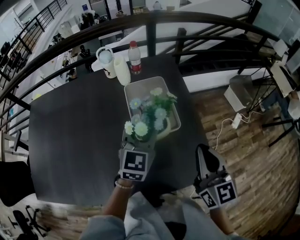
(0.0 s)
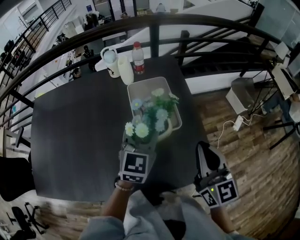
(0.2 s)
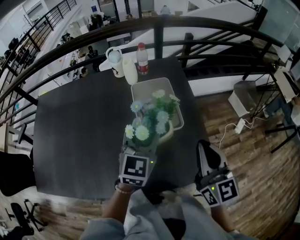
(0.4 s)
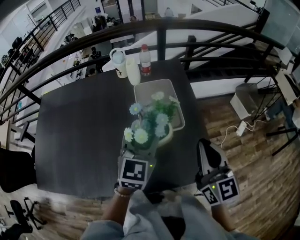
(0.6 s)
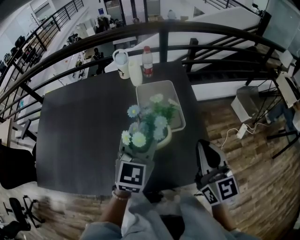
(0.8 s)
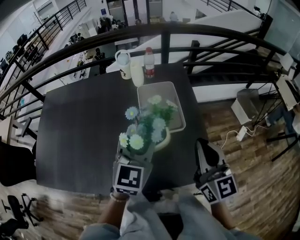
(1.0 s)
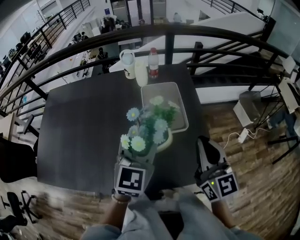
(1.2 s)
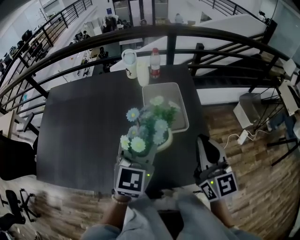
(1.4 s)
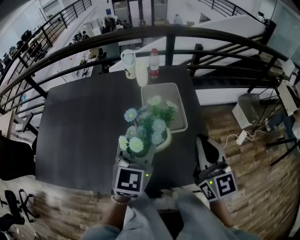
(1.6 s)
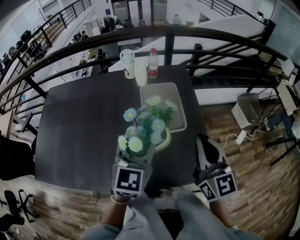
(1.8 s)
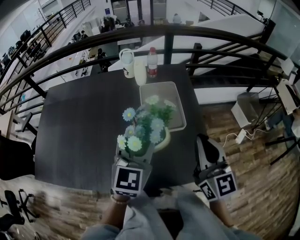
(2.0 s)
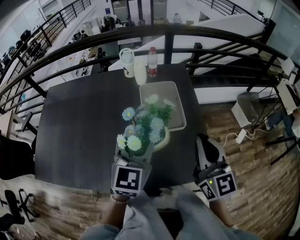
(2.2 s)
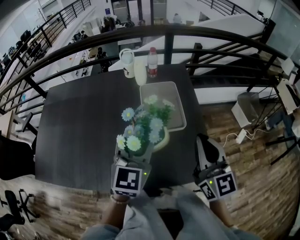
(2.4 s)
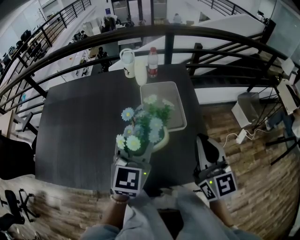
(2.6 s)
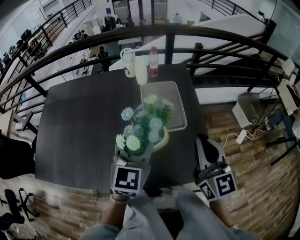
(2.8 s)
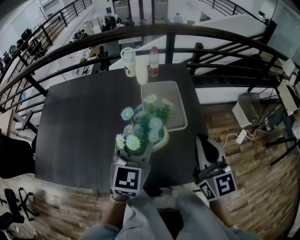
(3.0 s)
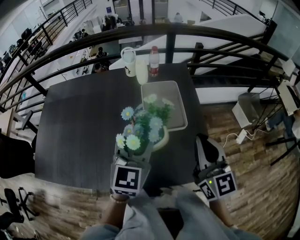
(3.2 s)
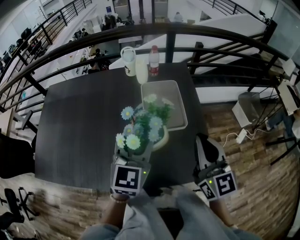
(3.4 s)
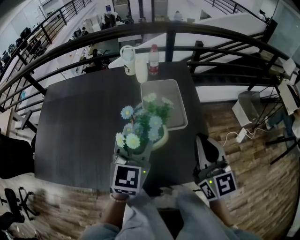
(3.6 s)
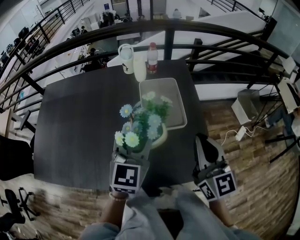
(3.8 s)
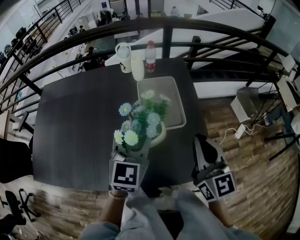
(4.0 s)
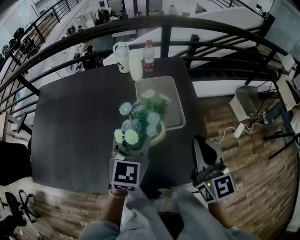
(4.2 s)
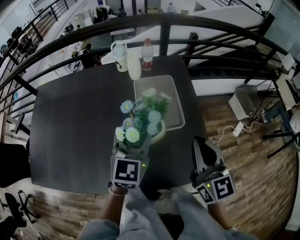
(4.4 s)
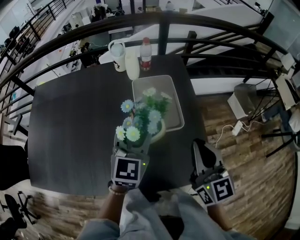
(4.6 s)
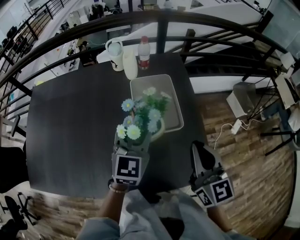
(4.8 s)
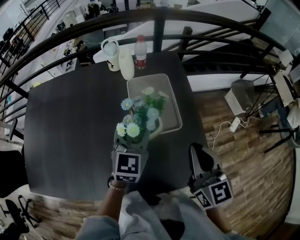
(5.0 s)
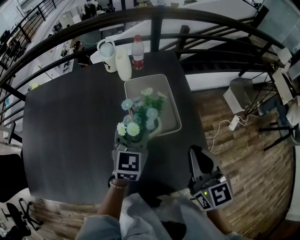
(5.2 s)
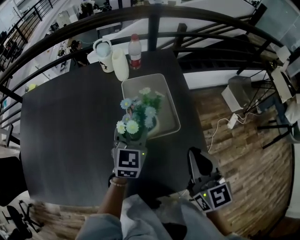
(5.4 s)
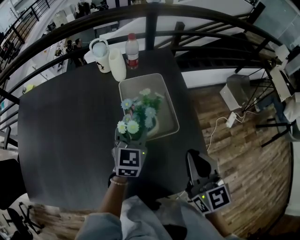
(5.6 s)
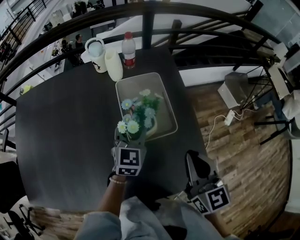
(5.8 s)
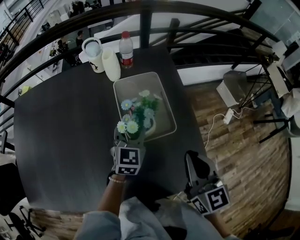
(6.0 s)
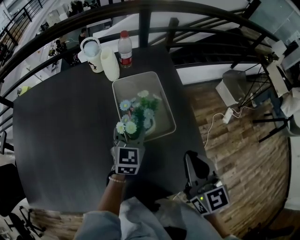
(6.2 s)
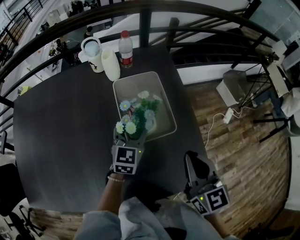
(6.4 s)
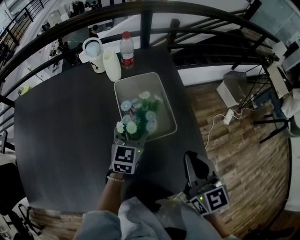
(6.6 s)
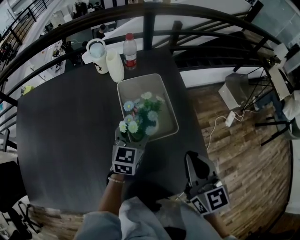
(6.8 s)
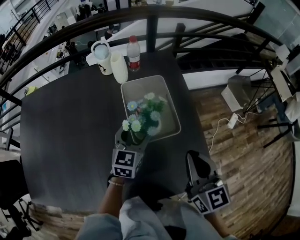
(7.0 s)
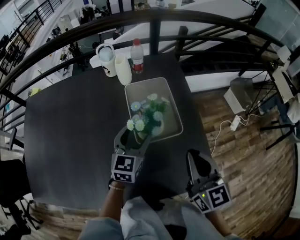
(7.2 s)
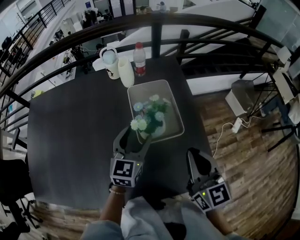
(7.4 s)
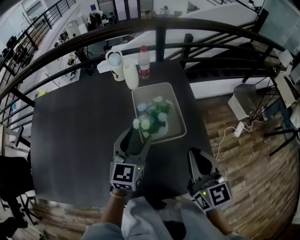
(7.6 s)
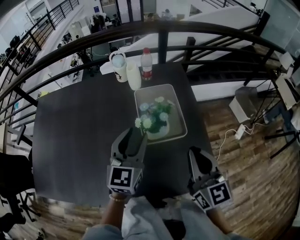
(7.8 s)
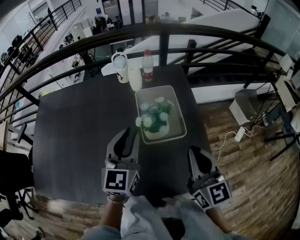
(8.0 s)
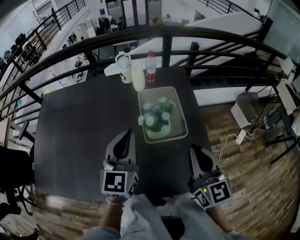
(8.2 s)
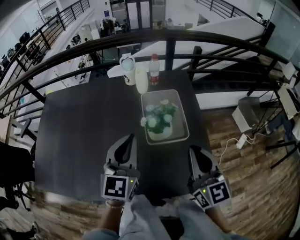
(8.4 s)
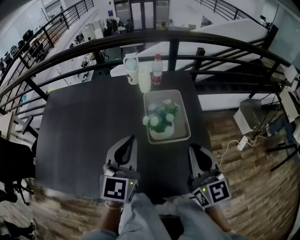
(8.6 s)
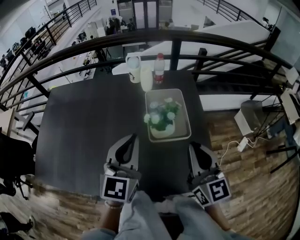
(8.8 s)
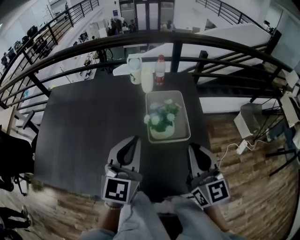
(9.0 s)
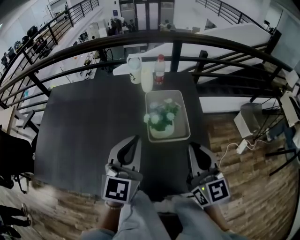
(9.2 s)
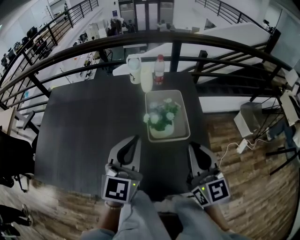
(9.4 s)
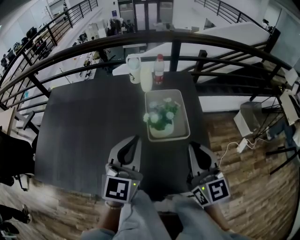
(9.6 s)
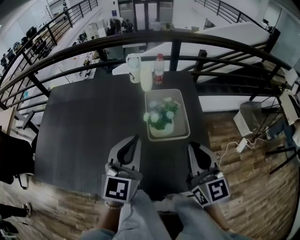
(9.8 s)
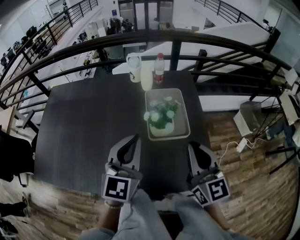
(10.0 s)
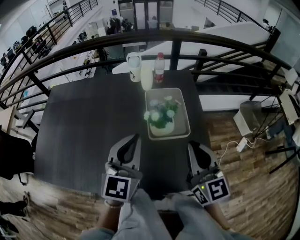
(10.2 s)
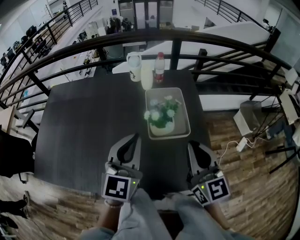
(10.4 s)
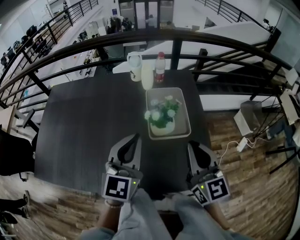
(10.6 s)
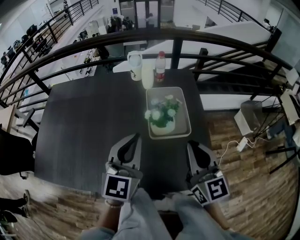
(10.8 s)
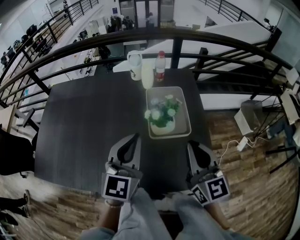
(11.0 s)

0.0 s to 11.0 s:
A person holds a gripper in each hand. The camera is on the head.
0.0 to 1.6 s: The right gripper heads upward, covering approximately 5 cm, while the left gripper travels backward and upward by some 15 cm.
1.6 to 3.2 s: Neither gripper changes place.
3.2 to 4.8 s: The right gripper shifts by approximately 5 cm; the left gripper heads forward and downward, covering roughly 10 cm.
4.8 to 6.2 s: The left gripper heads downward and forward, covering approximately 15 cm.
6.2 to 7.8 s: The left gripper shifts approximately 15 cm upward, backward and to the left.
7.8 to 9.4 s: The left gripper is displaced upward and backward by approximately 10 cm, and closes.
9.4 to 11.0 s: The two grippers keep their place.

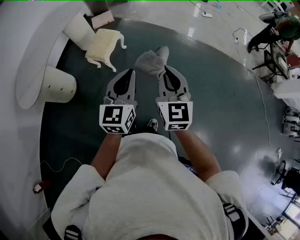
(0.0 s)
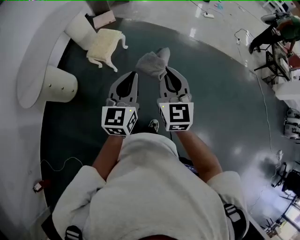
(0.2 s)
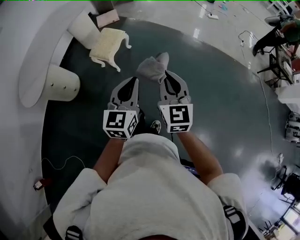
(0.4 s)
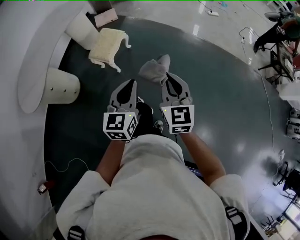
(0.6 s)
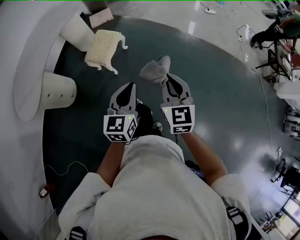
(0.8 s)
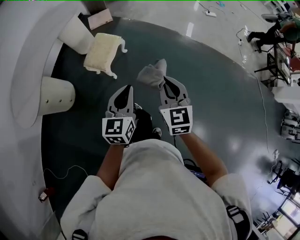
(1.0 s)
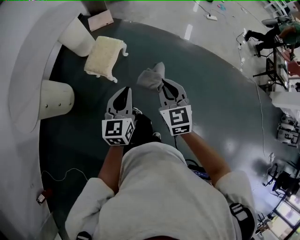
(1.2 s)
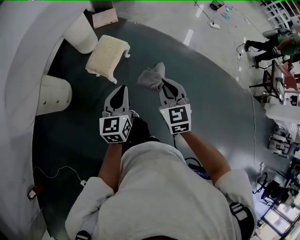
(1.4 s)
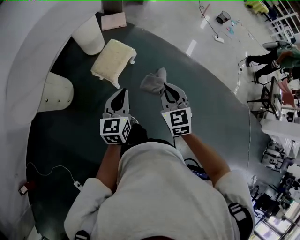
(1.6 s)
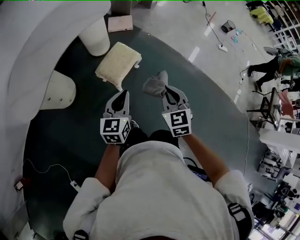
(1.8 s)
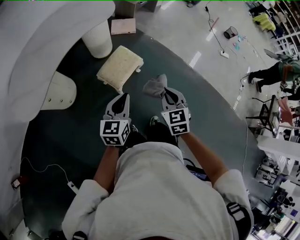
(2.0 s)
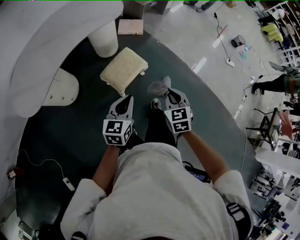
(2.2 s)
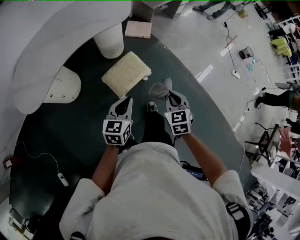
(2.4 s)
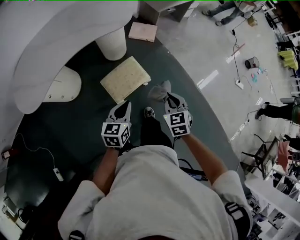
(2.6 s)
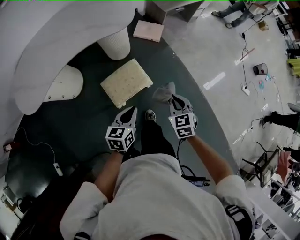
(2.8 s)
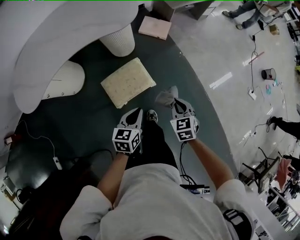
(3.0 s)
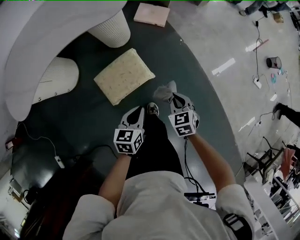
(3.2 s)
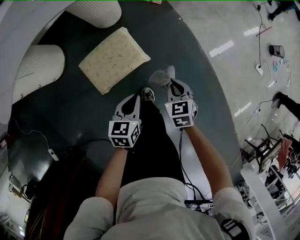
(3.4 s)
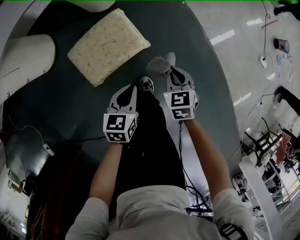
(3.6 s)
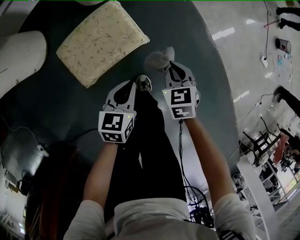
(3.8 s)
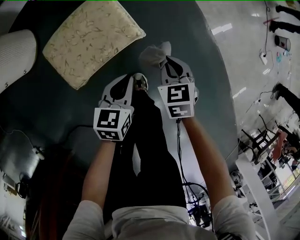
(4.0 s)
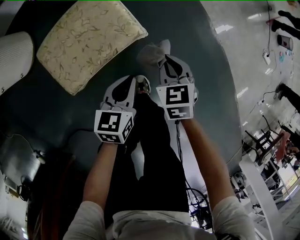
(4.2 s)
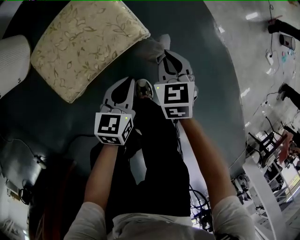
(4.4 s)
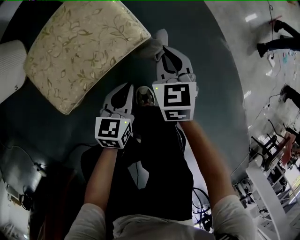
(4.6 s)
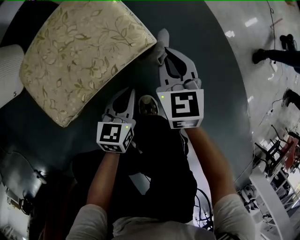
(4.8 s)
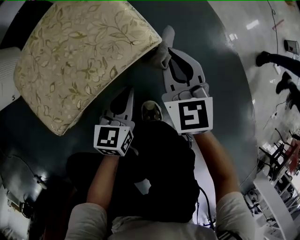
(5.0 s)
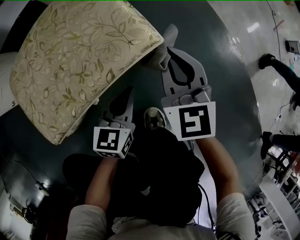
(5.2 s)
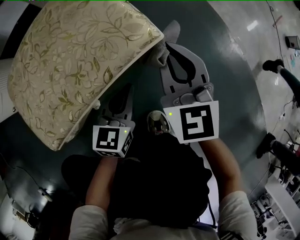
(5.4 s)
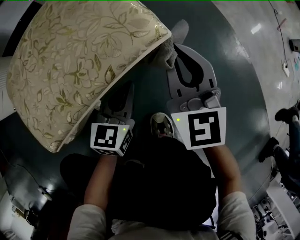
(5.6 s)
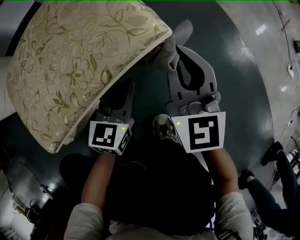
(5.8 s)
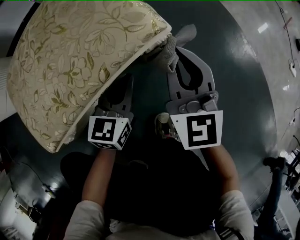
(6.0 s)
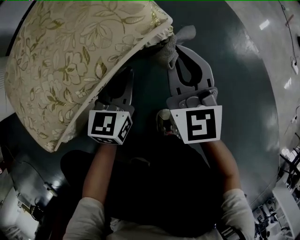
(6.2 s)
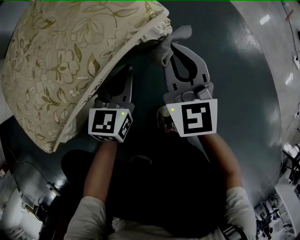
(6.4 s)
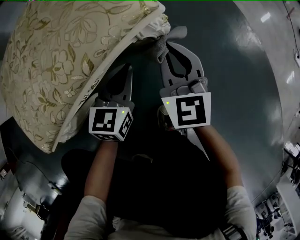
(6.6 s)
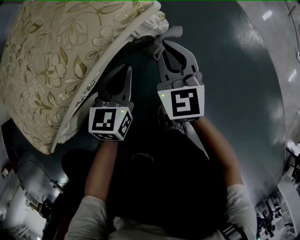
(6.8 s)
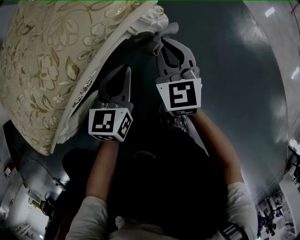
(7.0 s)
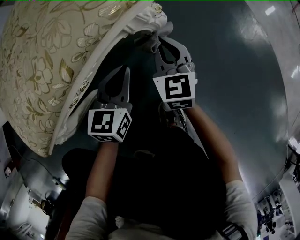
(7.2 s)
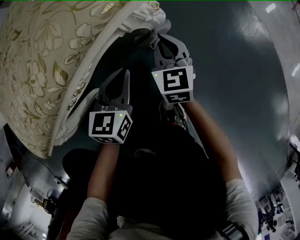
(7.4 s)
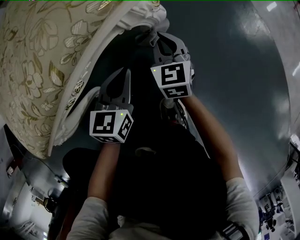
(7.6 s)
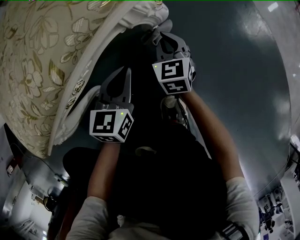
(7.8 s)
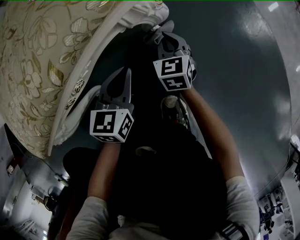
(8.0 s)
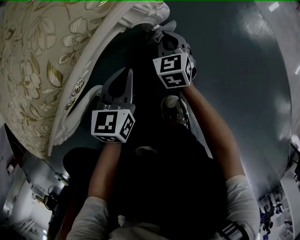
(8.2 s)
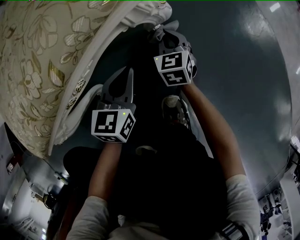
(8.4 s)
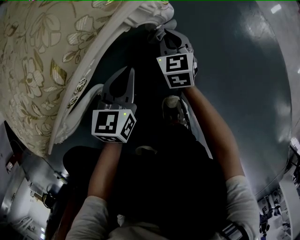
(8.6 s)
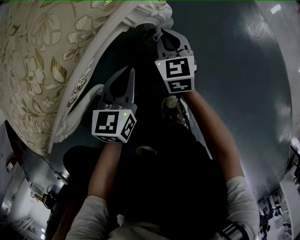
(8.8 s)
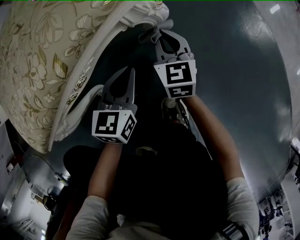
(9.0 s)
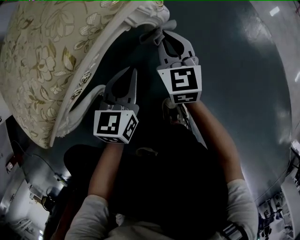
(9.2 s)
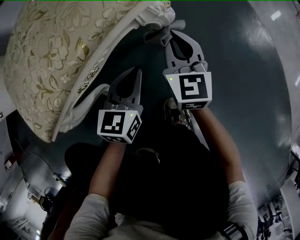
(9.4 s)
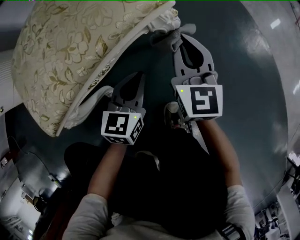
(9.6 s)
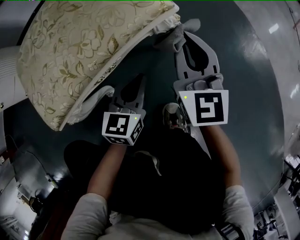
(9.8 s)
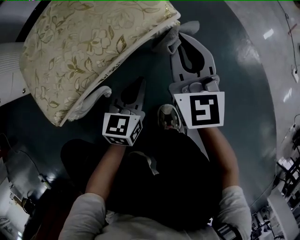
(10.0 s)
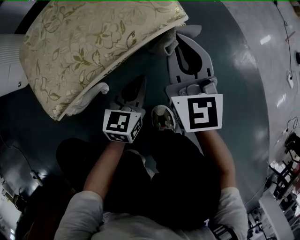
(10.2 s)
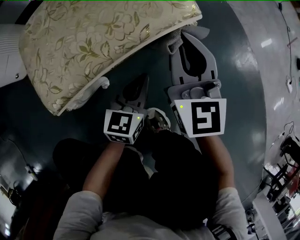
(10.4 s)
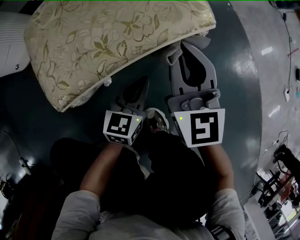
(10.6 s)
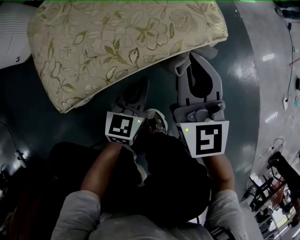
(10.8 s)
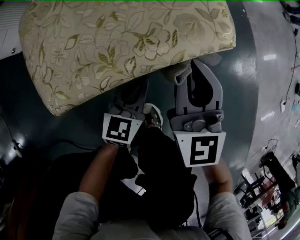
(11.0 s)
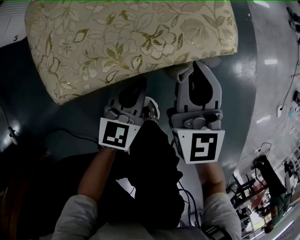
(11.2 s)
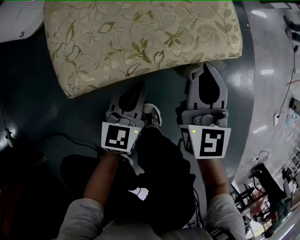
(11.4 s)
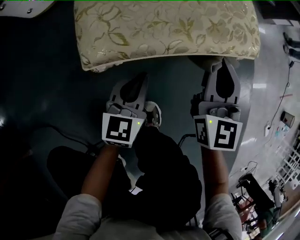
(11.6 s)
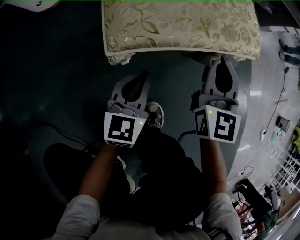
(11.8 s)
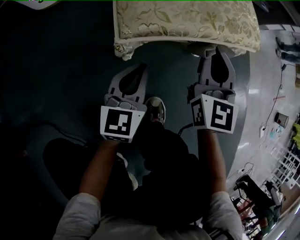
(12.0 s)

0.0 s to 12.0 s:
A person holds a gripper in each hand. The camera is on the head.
0.0 to 1.6 s: Both grippers move forward, to the left and downward, about 35 cm. The right gripper swivels about 30 degrees; the left gripper rotates some 20 degrees.
1.6 to 3.0 s: Both grippers travel together forward and downward, about 35 cm. The left gripper rotates roughly 30 degrees. Meanwhile the right gripper rotates about 30 degrees.
3.0 to 4.4 s: The two grippers go approximately 40 cm downward.
4.4 to 6.0 s: The left gripper is displaced downward by about 15 cm. Meanwhile the right gripper moves downward, approximately 5 cm, and points its fingers roughly 40 degrees further upward.
6.0 to 7.6 s: The right gripper moves downward, some 20 cm, and rotates about 20 degrees; the left gripper is displaced downward by about 5 cm.
7.6 to 9.0 s: The right gripper travels downward and back again, roughly 5 cm each way.
9.0 to 10.4 s: The left gripper travels upward by approximately 5 cm; the right gripper moves upward, some 25 cm, and rotates roughly 20 degrees.
10.4 to 12.0 s: The right gripper heads to the left, covering roughly 10 cm; the left gripper is displaced to the left and backward by about 15 cm, and turns by roughly 30 degrees.

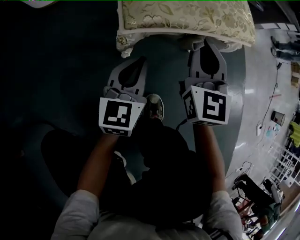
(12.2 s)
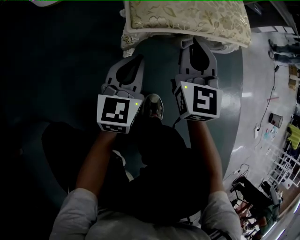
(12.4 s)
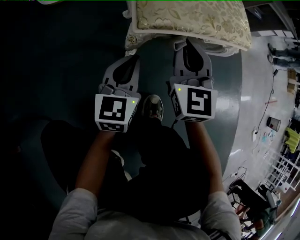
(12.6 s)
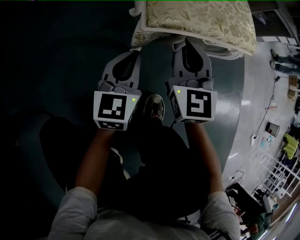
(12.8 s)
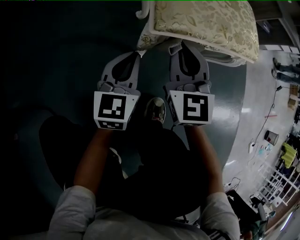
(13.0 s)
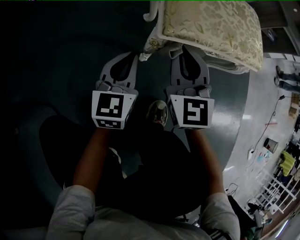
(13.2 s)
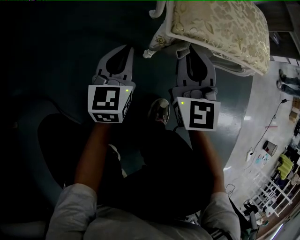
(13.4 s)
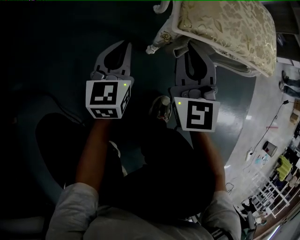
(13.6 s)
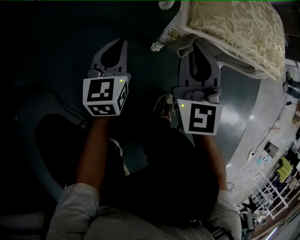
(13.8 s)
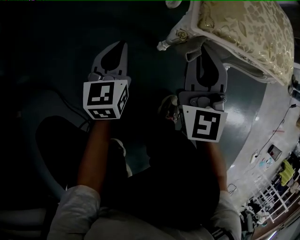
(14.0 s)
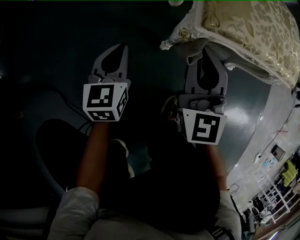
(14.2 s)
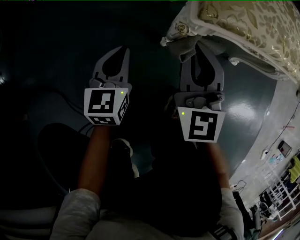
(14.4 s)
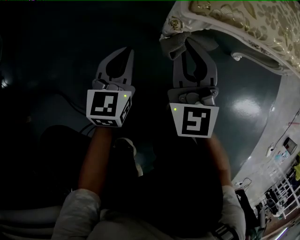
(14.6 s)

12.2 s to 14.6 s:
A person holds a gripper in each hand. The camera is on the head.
12.2 to 13.4 s: The two grippers go some 10 cm to the left.
13.4 to 14.6 s: Both grippers travel together downward, roughly 10 cm.
